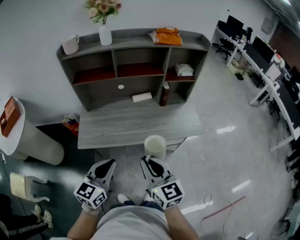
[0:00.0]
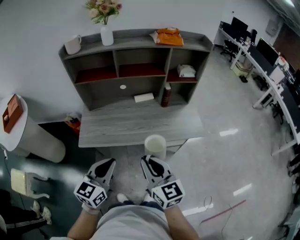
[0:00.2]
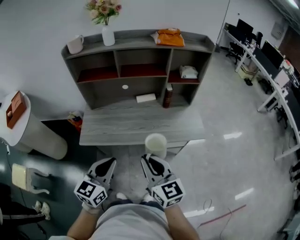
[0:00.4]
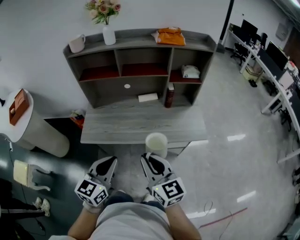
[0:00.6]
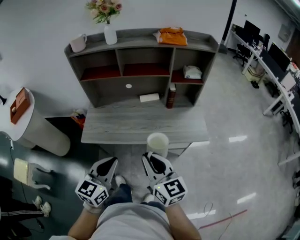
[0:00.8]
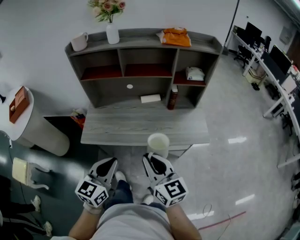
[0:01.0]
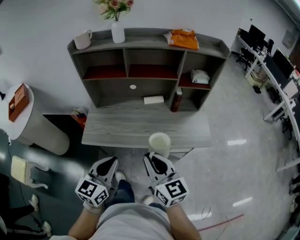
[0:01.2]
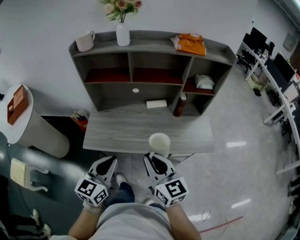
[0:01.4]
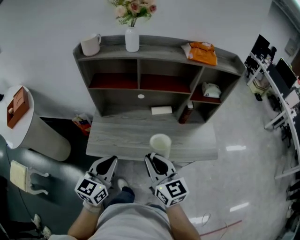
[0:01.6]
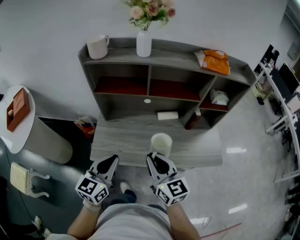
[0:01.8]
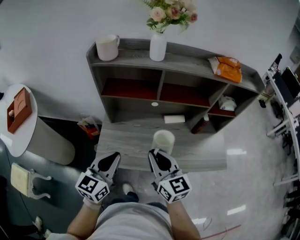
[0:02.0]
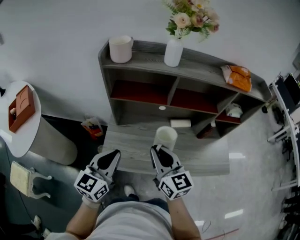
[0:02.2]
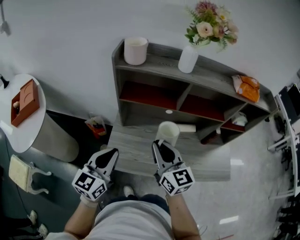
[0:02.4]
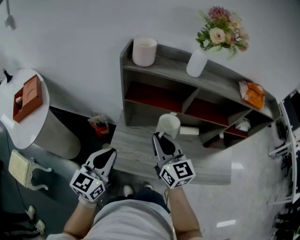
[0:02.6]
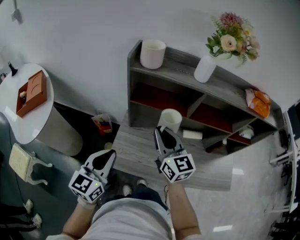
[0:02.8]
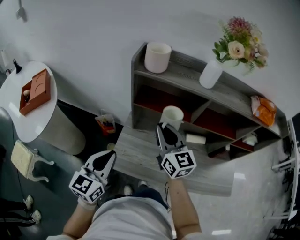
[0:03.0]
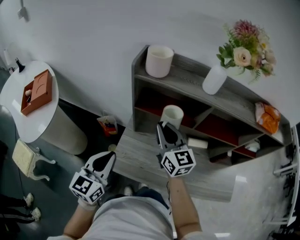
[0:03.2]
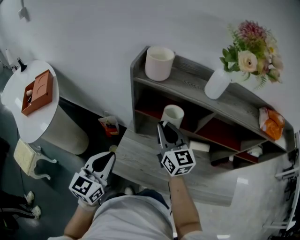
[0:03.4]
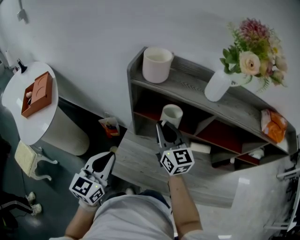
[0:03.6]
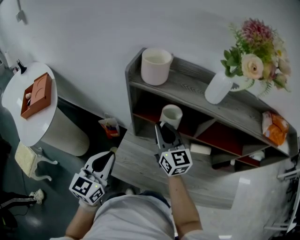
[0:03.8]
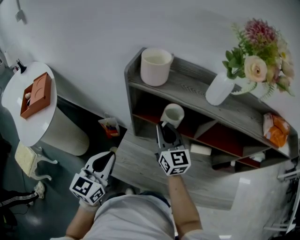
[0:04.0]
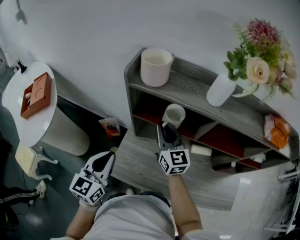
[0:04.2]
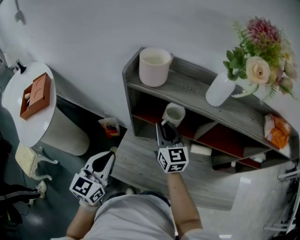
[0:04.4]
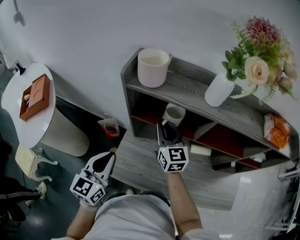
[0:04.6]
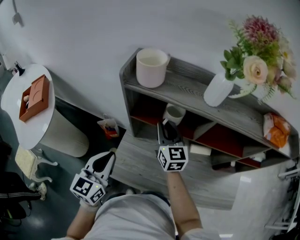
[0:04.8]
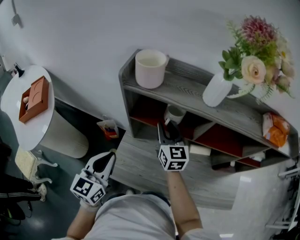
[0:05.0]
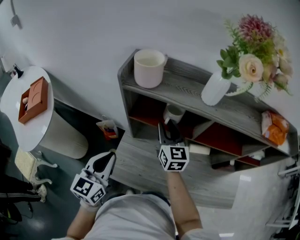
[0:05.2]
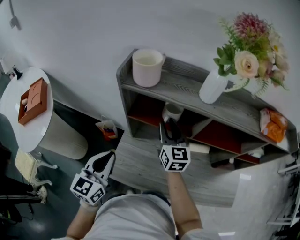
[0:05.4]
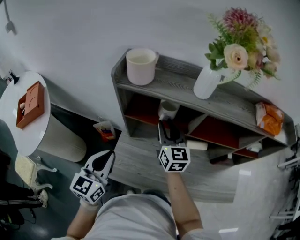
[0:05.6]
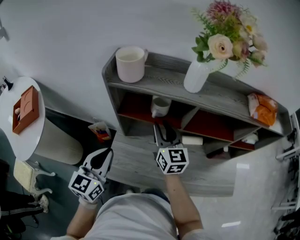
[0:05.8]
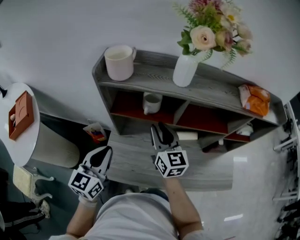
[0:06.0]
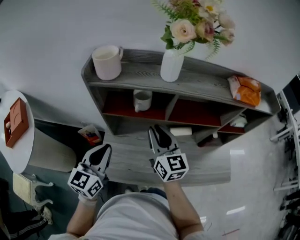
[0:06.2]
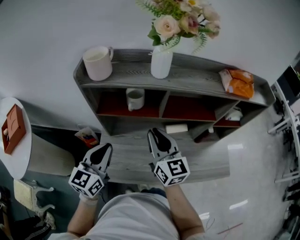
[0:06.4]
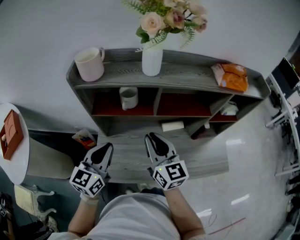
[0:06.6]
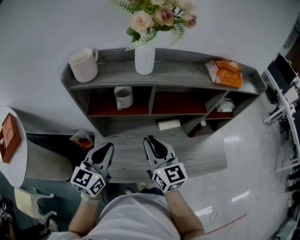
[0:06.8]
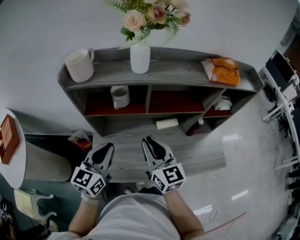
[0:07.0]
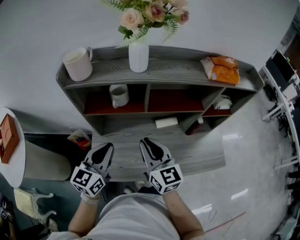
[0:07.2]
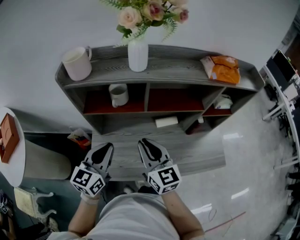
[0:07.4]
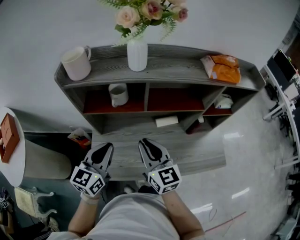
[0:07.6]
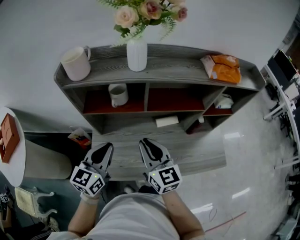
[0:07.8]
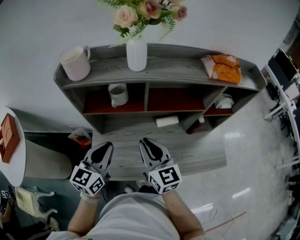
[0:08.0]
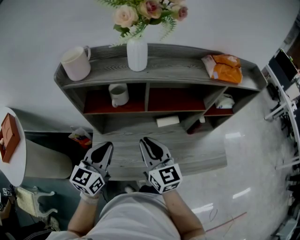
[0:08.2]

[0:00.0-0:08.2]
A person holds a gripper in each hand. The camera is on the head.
0:00.0 to 0:01.6: The two grippers go approximately 10 cm forward.
0:01.6 to 0:03.2: The left gripper goes some 25 cm to the left and forward, while the right gripper is displaced forward and to the left by approximately 35 cm.
0:03.2 to 0:05.0: Both grippers move forward, approximately 10 cm.
0:05.0 to 0:06.6: The left gripper heads to the right, covering roughly 10 cm. Meanwhile the right gripper shifts approximately 20 cm backward and to the right.
0:06.6 to 0:08.2: The grippers stay close to where they were, moving slightly.

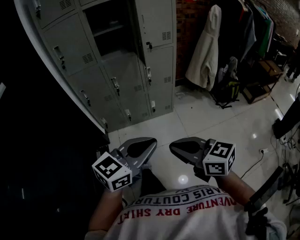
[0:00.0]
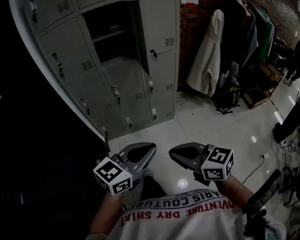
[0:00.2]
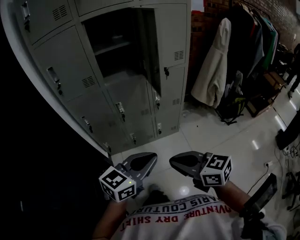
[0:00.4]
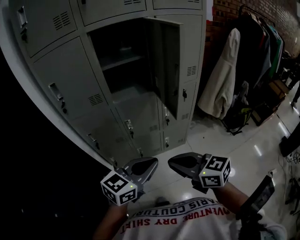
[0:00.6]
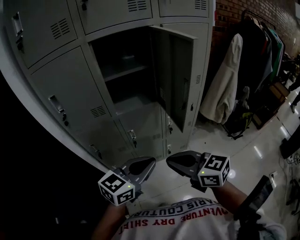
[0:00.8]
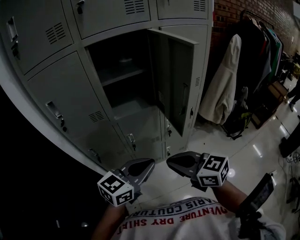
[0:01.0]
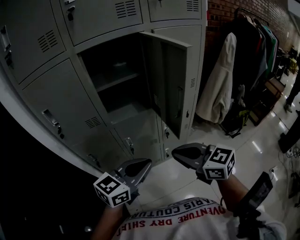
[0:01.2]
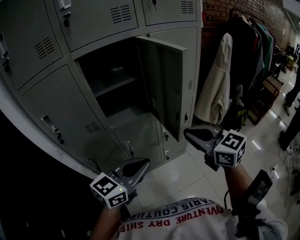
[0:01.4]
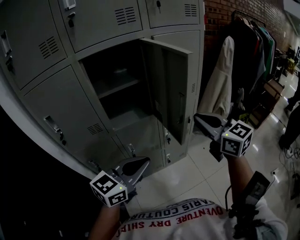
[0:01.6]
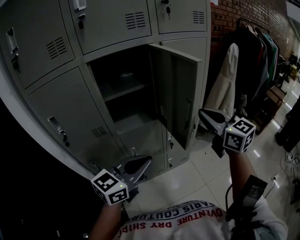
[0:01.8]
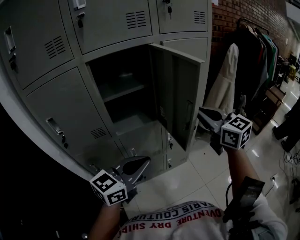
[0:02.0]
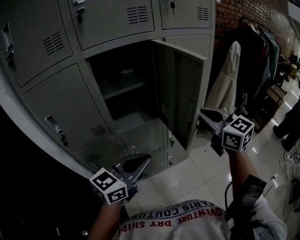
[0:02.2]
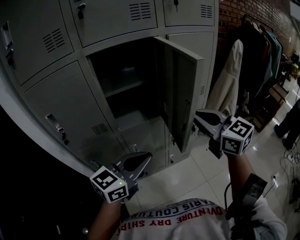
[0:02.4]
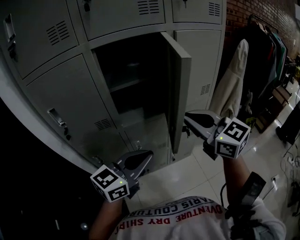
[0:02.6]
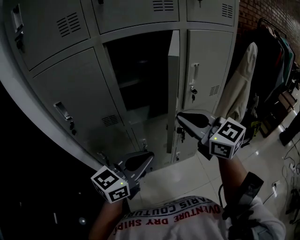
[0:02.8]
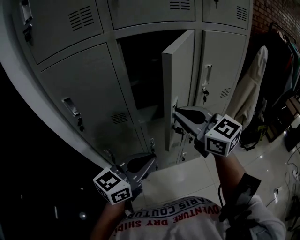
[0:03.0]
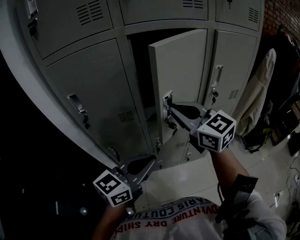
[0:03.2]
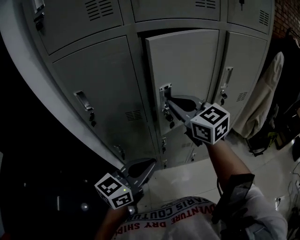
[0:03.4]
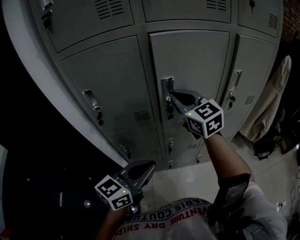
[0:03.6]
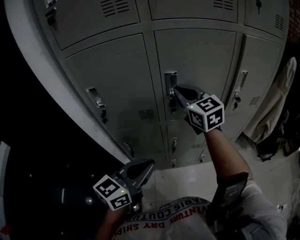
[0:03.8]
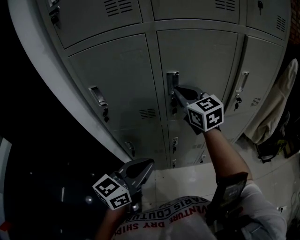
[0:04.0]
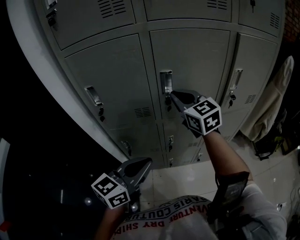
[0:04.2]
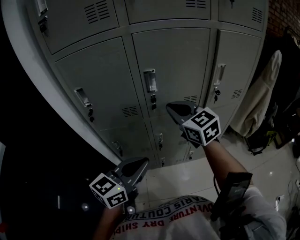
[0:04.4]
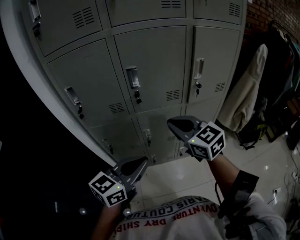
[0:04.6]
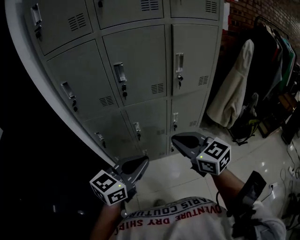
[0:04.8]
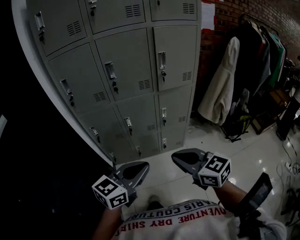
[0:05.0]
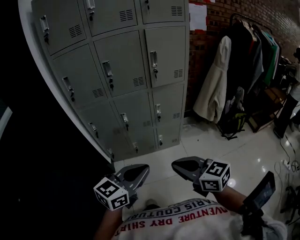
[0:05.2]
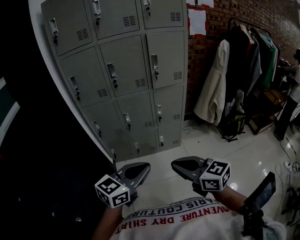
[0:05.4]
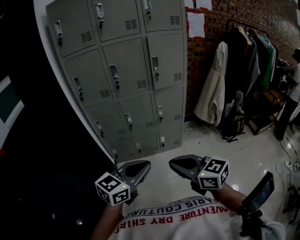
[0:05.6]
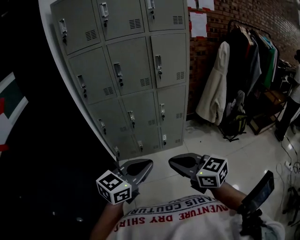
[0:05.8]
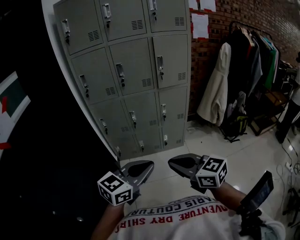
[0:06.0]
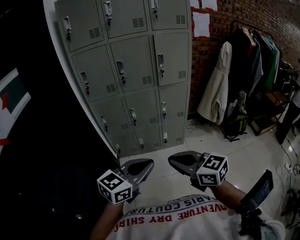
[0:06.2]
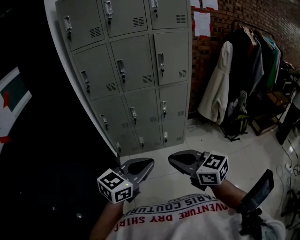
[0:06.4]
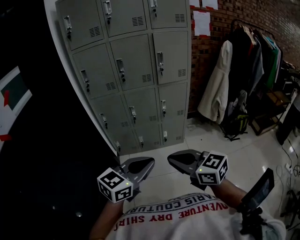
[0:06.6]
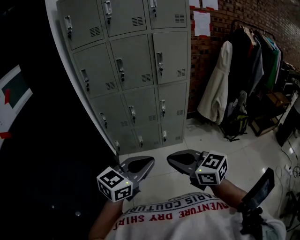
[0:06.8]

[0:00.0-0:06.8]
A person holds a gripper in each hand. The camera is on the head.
0:00.0 to 0:01.4: The right gripper moves forward, roughly 40 cm, and swivels roughly 20 degrees; the left gripper goes some 40 cm forward and to the left.
0:01.4 to 0:02.8: The right gripper travels to the left, forward and upward by some 15 cm, while the left gripper shifts approximately 5 cm to the left.
0:02.8 to 0:04.0: The right gripper travels forward and to the left by approximately 20 cm, while the left gripper moves to the left, approximately 10 cm.
0:04.0 to 0:05.4: The pair of grippers is taken backward and to the right, roughly 50 cm. The right gripper swivels roughly 20 degrees.
0:05.4 to 0:06.8: Both grippers travel together backward, roughly 5 cm.

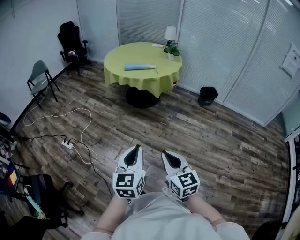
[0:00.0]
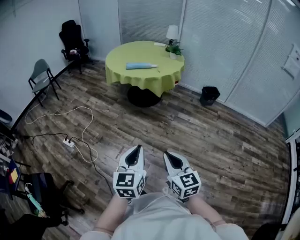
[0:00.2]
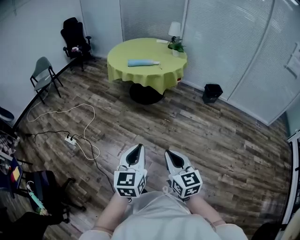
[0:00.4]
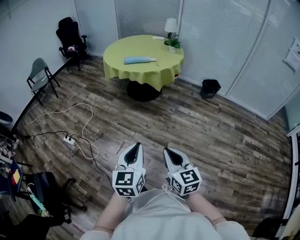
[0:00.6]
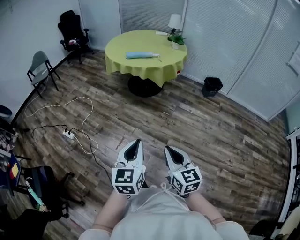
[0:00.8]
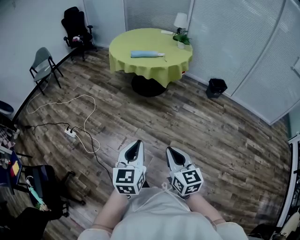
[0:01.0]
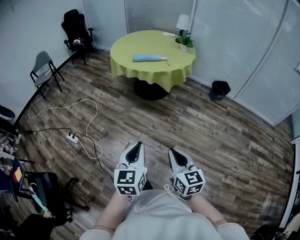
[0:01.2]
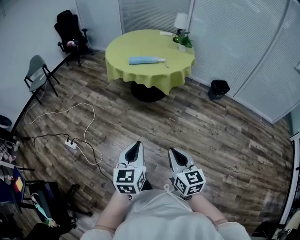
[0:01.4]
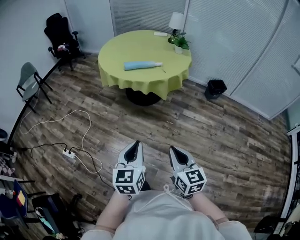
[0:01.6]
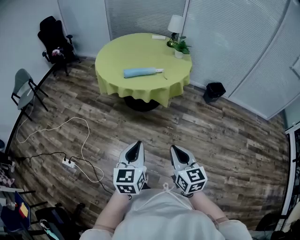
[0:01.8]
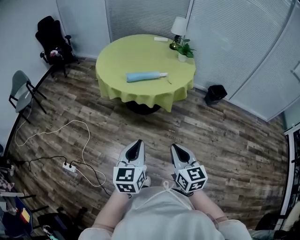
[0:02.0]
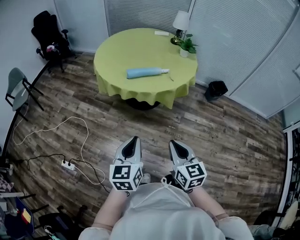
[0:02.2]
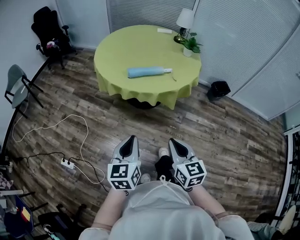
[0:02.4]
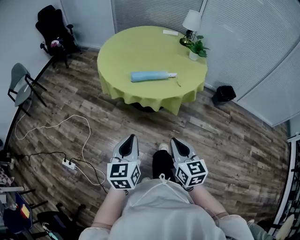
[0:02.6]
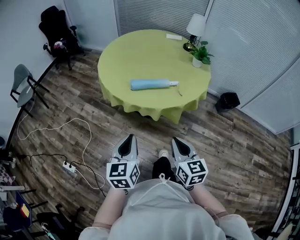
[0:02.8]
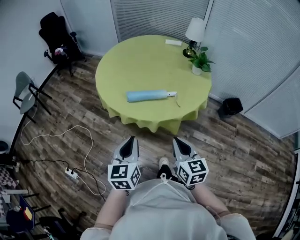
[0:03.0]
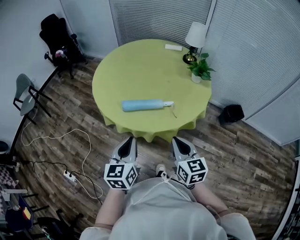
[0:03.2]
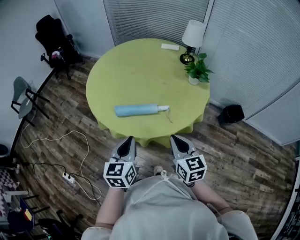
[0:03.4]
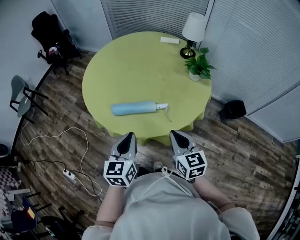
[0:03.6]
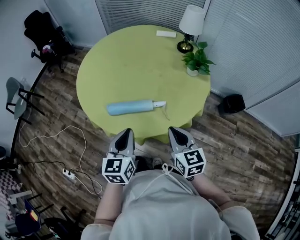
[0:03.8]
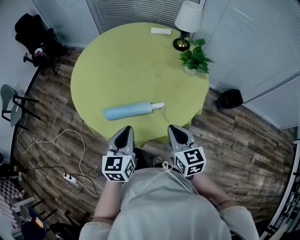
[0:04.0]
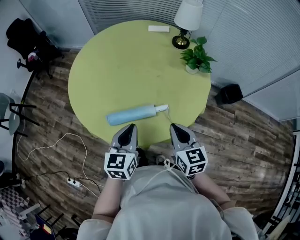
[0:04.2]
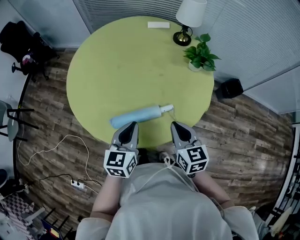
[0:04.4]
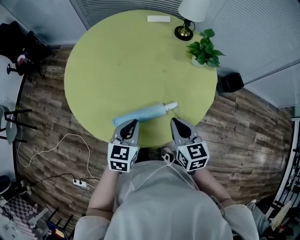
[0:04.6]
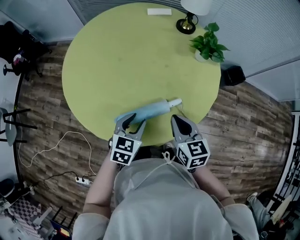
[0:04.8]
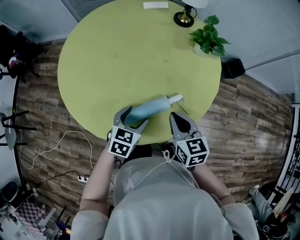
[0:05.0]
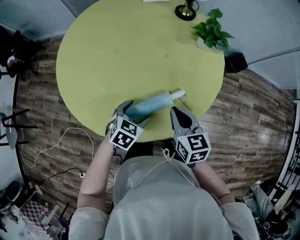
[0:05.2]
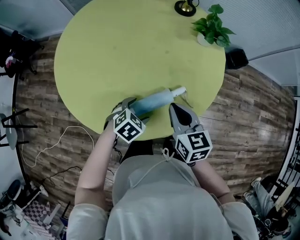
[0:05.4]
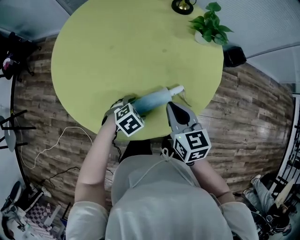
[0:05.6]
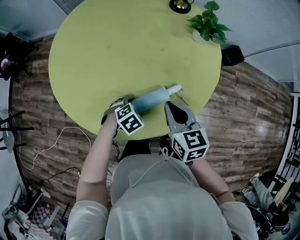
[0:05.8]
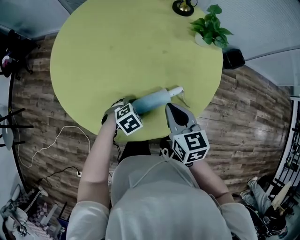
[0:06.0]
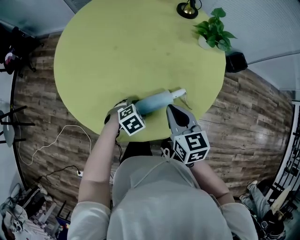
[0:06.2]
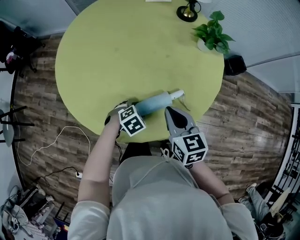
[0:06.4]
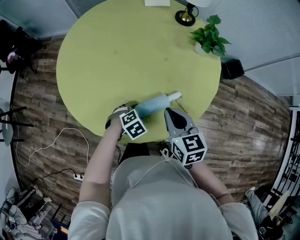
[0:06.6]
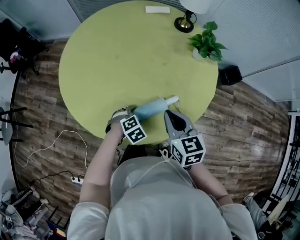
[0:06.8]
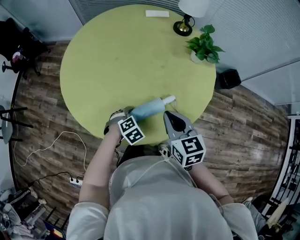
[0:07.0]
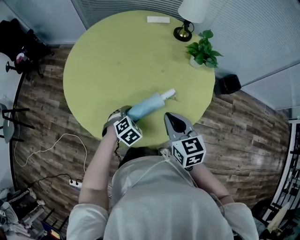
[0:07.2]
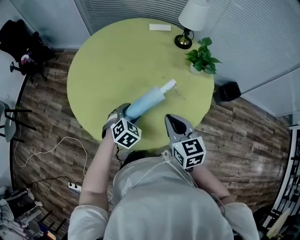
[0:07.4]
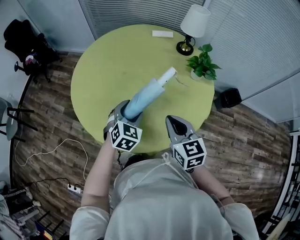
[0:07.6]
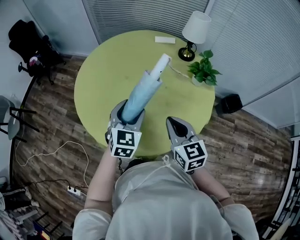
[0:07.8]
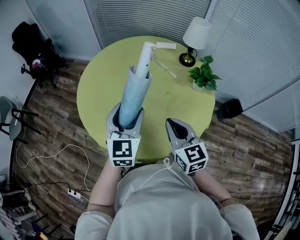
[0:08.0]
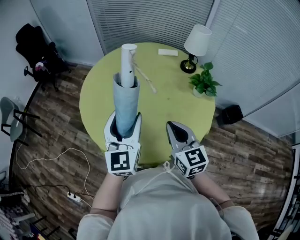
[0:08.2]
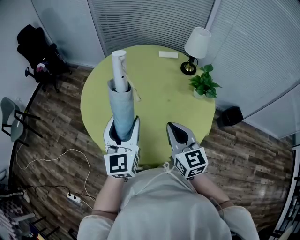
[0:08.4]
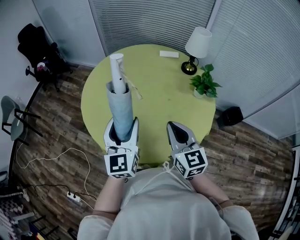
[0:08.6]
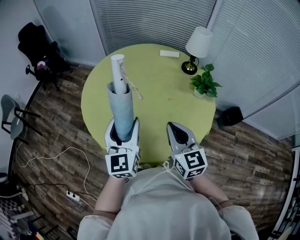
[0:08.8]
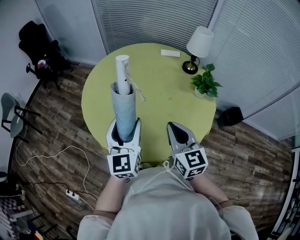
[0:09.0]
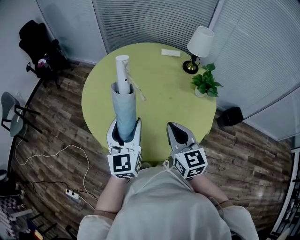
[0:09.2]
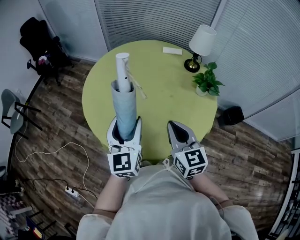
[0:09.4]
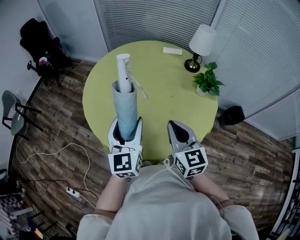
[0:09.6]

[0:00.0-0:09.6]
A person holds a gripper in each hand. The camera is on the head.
0:00.0 to 0:01.6: Both grippers travel together forward, roughly 25 cm.
0:01.6 to 0:03.2: The two grippers travel together, forward, some 50 cm.
0:03.2 to 0:04.8: The right gripper heads forward, covering about 25 cm. Meanwhile the left gripper travels forward and downward by roughly 35 cm, swivels some 40 degrees, and opens.
0:04.8 to 0:06.4: The left gripper heads downward, covering about 15 cm, tips its fingers downward by roughly 30 degrees, and opens its fingers.
0:06.4 to 0:08.0: The right gripper moves upward, approximately 15 cm, and turns by some 20 degrees. The left gripper travels upward by some 35 cm, and points its fingers some 60 degrees further upward.
0:08.0 to 0:09.6: The left gripper moves approximately 5 cm.
